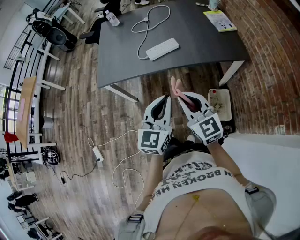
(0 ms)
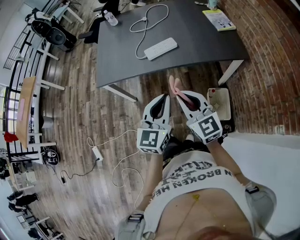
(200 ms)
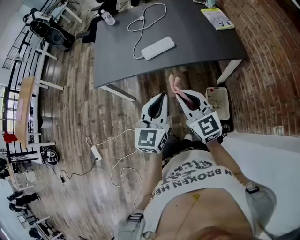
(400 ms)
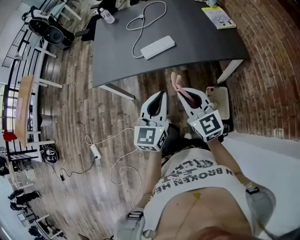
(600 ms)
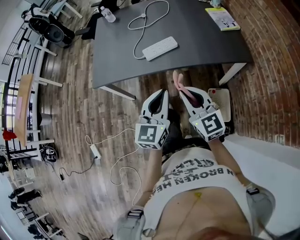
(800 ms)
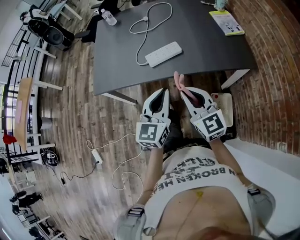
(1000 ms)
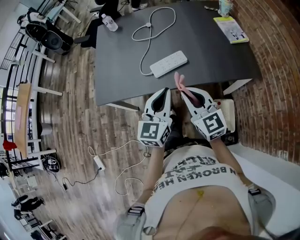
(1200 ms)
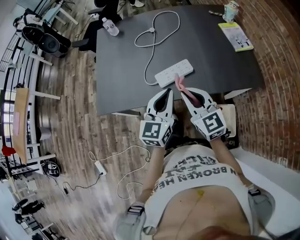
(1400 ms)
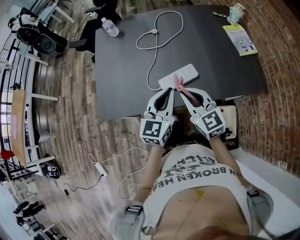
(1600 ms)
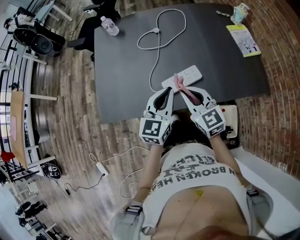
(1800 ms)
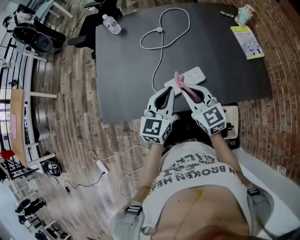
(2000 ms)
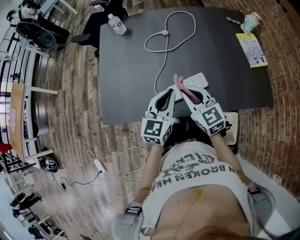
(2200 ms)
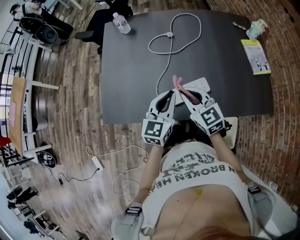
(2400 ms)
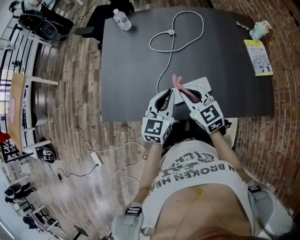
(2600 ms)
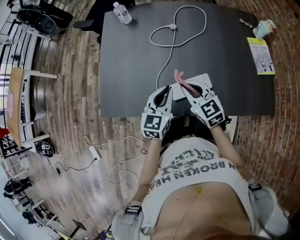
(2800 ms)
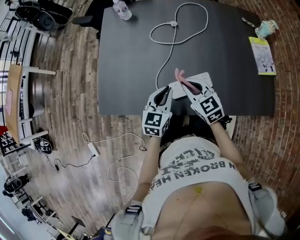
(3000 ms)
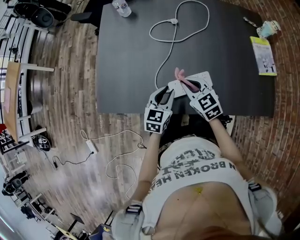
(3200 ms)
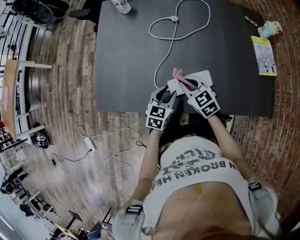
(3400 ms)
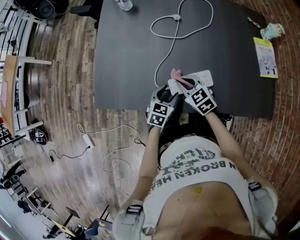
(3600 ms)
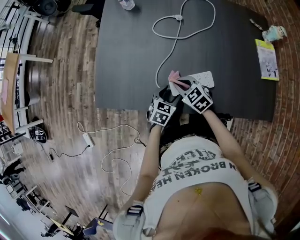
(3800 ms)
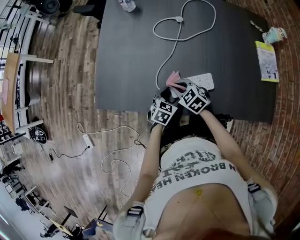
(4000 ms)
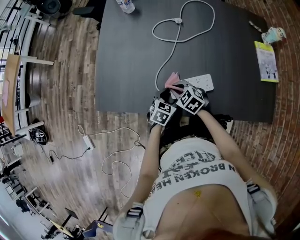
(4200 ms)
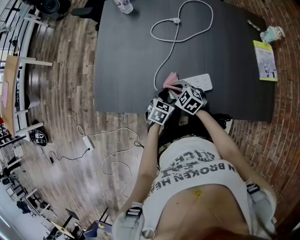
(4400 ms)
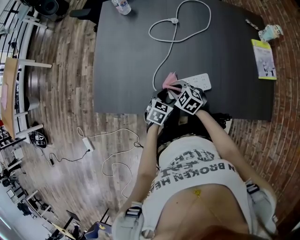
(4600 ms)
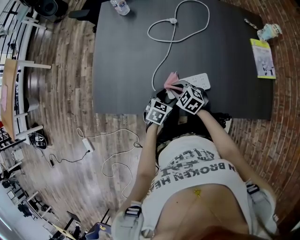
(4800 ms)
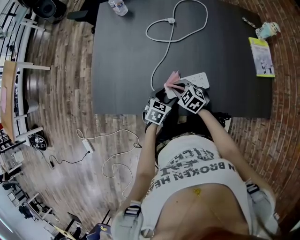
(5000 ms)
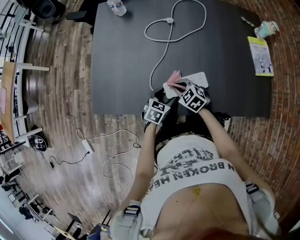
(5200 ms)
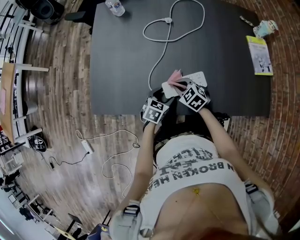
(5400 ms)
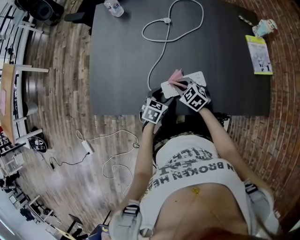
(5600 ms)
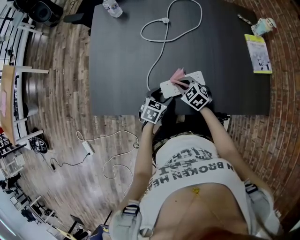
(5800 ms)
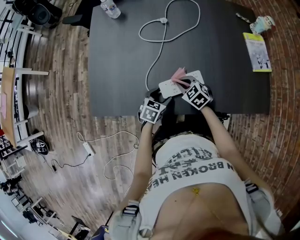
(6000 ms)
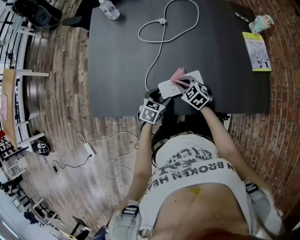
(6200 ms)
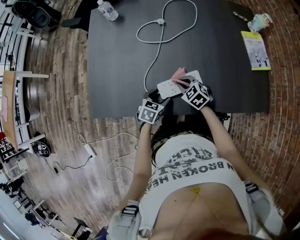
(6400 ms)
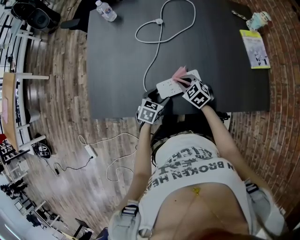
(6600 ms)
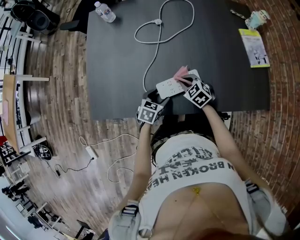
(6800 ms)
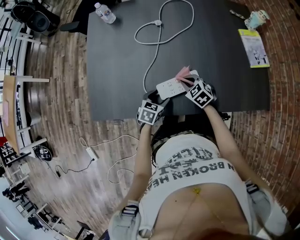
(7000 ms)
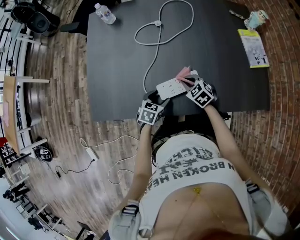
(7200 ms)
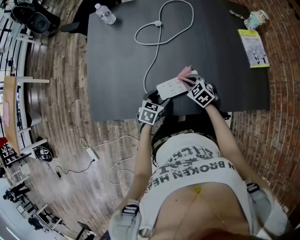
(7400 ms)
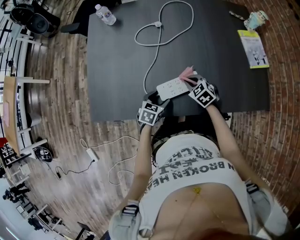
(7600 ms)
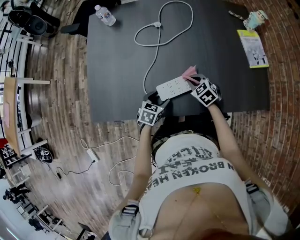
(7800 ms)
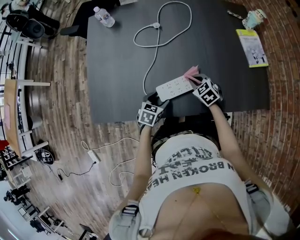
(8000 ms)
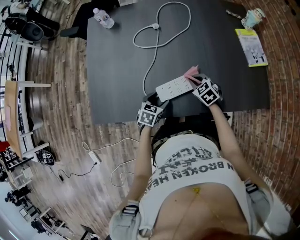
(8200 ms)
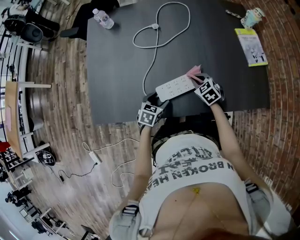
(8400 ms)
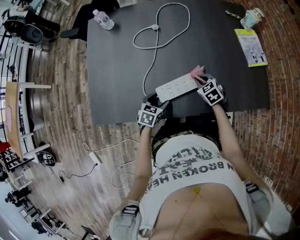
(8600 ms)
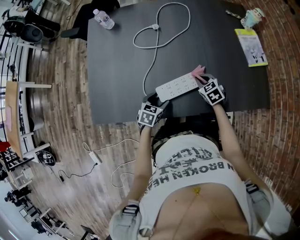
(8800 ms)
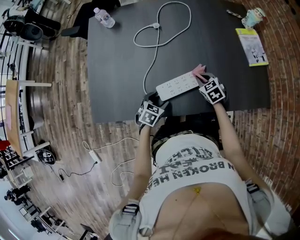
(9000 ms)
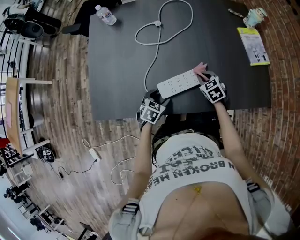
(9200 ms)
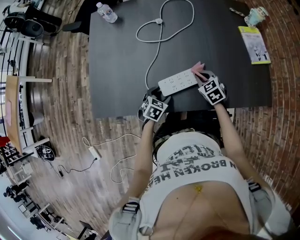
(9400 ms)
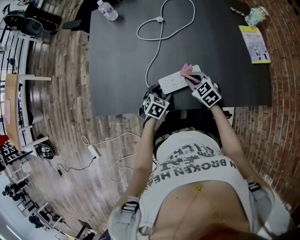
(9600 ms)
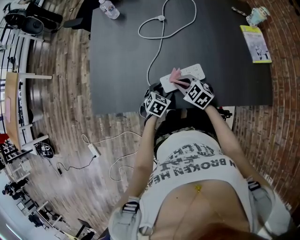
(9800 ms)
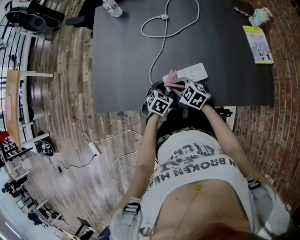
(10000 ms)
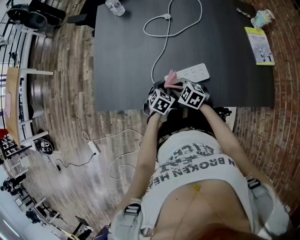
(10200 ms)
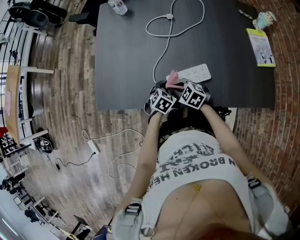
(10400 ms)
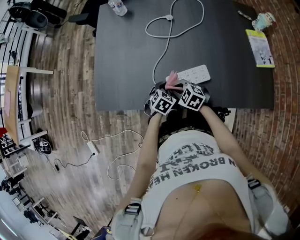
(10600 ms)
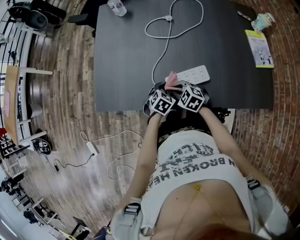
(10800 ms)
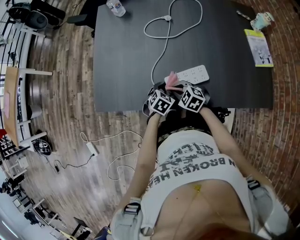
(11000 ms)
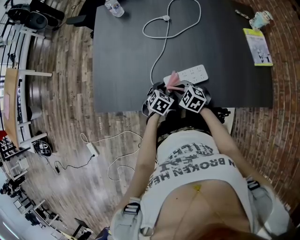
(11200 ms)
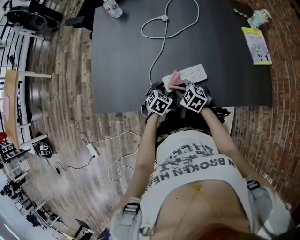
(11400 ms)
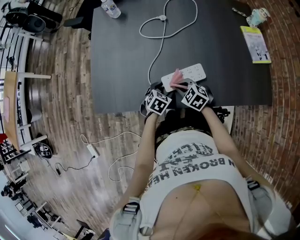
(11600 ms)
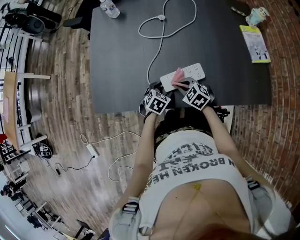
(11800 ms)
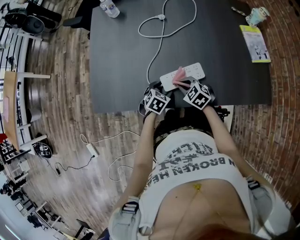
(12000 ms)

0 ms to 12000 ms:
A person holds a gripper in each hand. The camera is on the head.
0 ms to 1600 ms: The grippers both shift forward by approximately 35 cm.
1600 ms to 3000 ms: The right gripper moves forward and downward, approximately 15 cm; the left gripper is displaced downward and forward by approximately 15 cm.
3000 ms to 4400 ms: Both grippers travel together downward, approximately 15 cm. The left gripper turns by approximately 30 degrees, and opens, while the right gripper turns by approximately 30 degrees.
4400 ms to 6000 ms: The right gripper travels to the right by roughly 10 cm.
6000 ms to 7600 ms: The right gripper is displaced to the right by approximately 5 cm.
7600 ms to 9000 ms: The right gripper heads to the right, covering approximately 5 cm.
9000 ms to 10400 ms: The right gripper goes about 20 cm to the left and backward, and turns by about 30 degrees.
10400 ms to 12000 ms: The right gripper heads to the right, covering roughly 5 cm.

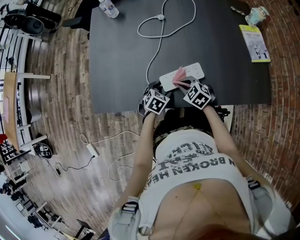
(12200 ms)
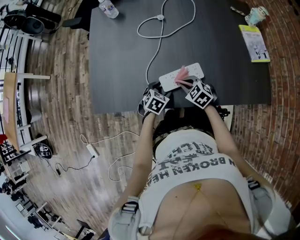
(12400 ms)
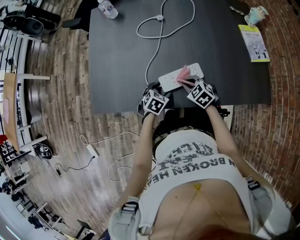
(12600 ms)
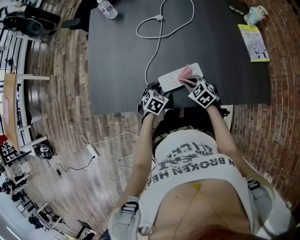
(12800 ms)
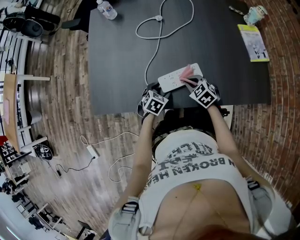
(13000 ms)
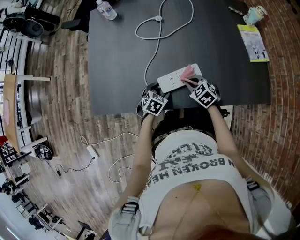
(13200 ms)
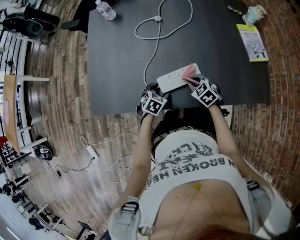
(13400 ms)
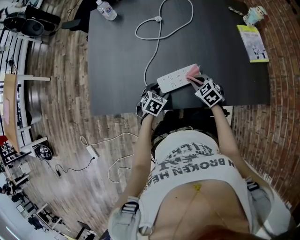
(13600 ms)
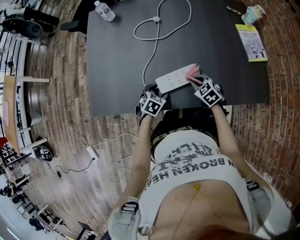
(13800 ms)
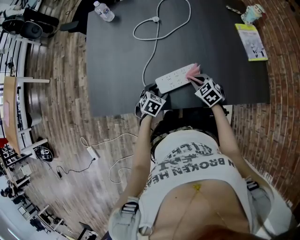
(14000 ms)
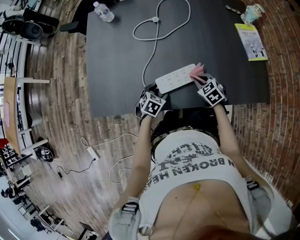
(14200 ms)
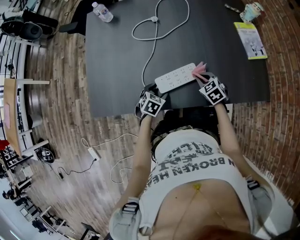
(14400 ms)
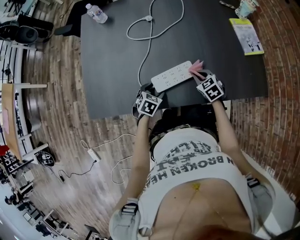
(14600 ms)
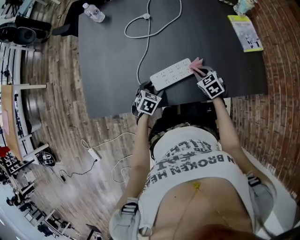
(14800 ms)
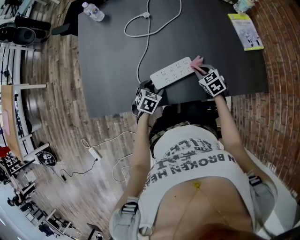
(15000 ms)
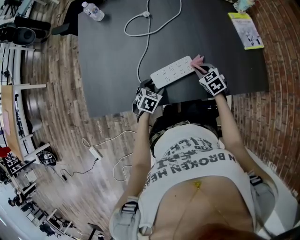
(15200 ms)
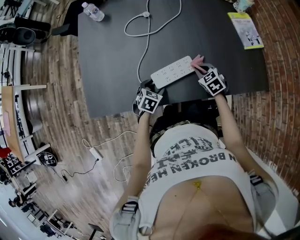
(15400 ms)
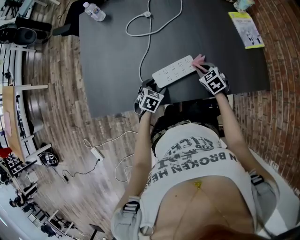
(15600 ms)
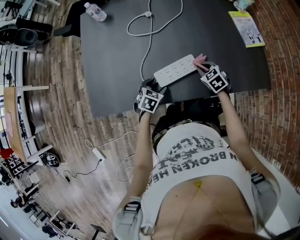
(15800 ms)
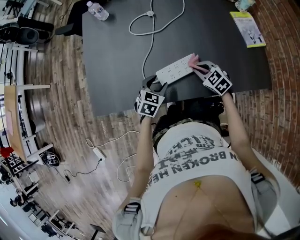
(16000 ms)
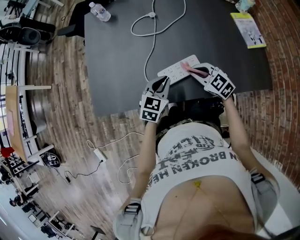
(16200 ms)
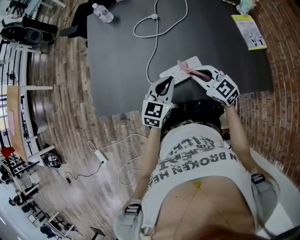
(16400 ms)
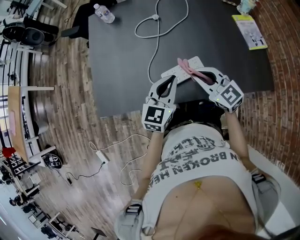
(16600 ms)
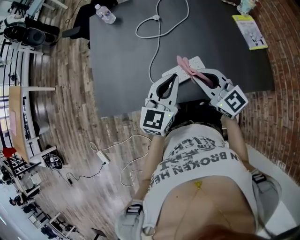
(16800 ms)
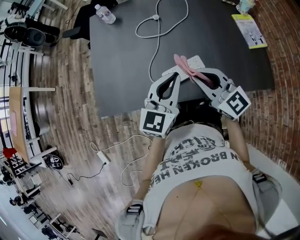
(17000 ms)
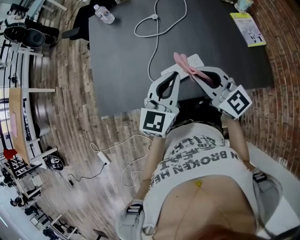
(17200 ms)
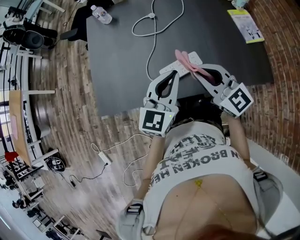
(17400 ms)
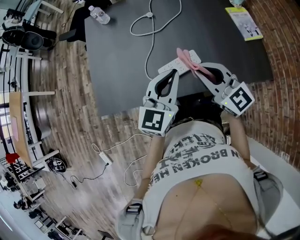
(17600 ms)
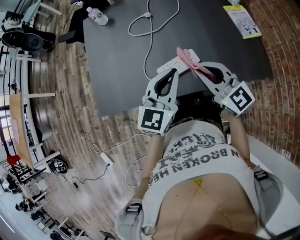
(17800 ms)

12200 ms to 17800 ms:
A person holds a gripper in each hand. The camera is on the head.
12200 ms to 13600 ms: The right gripper is displaced to the right by some 10 cm.
13600 ms to 15000 ms: The right gripper goes roughly 5 cm to the right.
15000 ms to 16400 ms: The left gripper goes approximately 20 cm upward, tilts its fingers about 40 degrees upward, and closes, while the right gripper heads upward and to the left, covering approximately 20 cm, and changes its angle by roughly 30 degrees.
16400 ms to 17800 ms: The grippers both shift upward by about 15 cm. The right gripper turns by some 20 degrees.

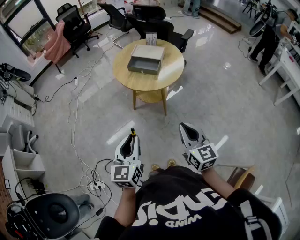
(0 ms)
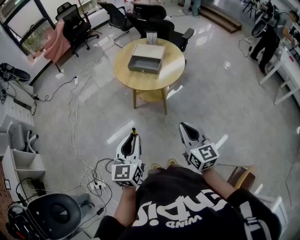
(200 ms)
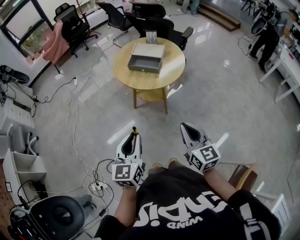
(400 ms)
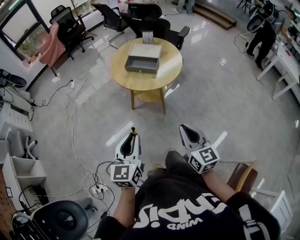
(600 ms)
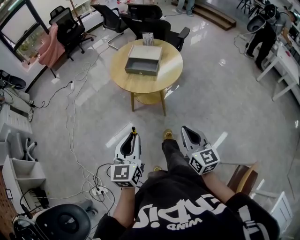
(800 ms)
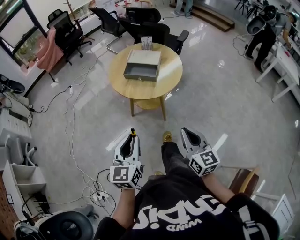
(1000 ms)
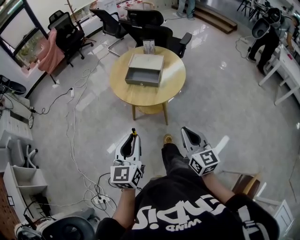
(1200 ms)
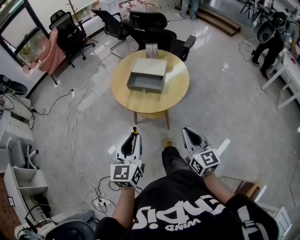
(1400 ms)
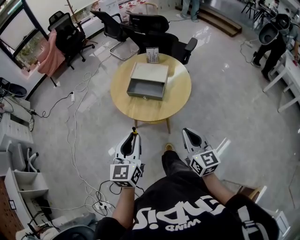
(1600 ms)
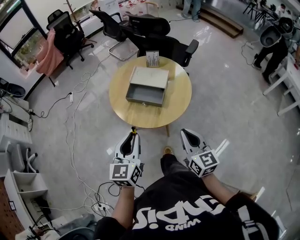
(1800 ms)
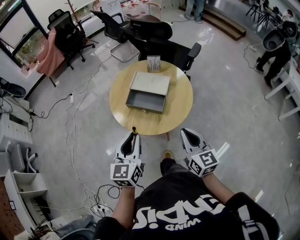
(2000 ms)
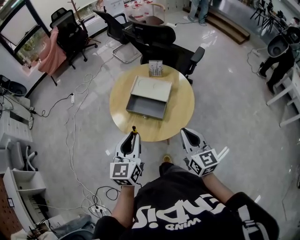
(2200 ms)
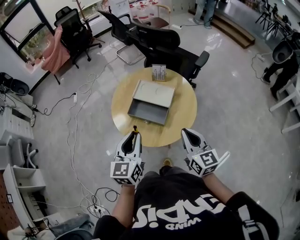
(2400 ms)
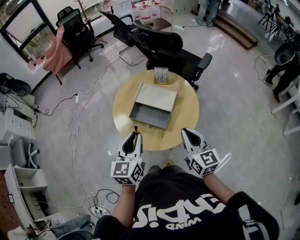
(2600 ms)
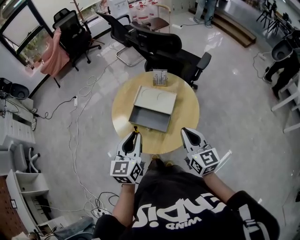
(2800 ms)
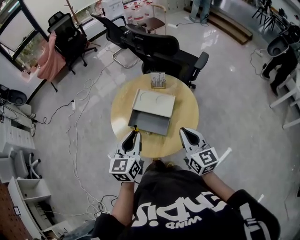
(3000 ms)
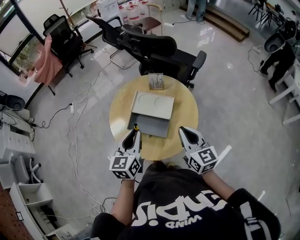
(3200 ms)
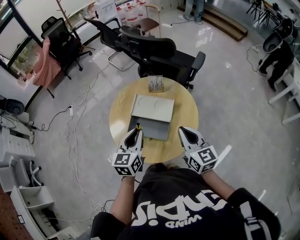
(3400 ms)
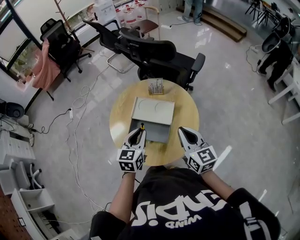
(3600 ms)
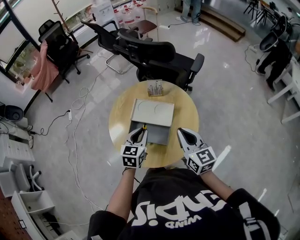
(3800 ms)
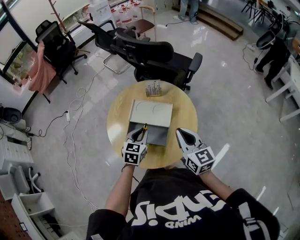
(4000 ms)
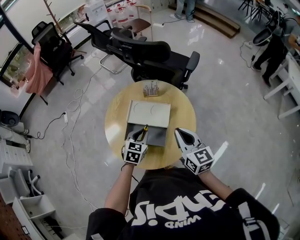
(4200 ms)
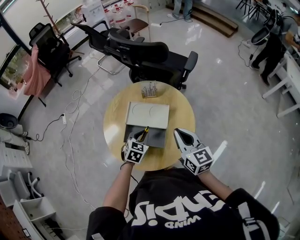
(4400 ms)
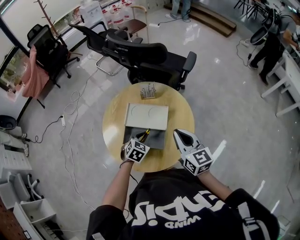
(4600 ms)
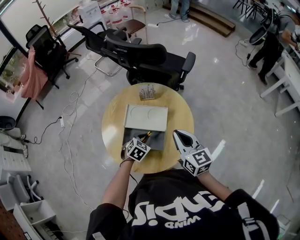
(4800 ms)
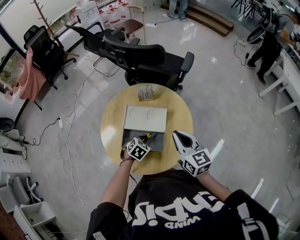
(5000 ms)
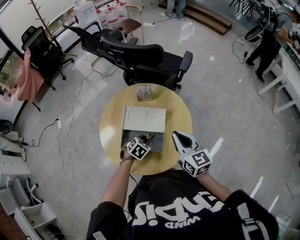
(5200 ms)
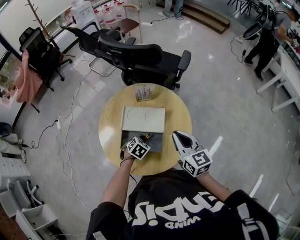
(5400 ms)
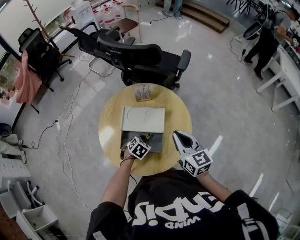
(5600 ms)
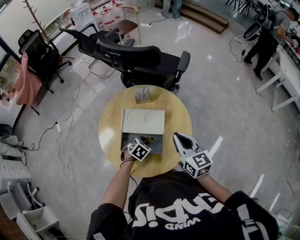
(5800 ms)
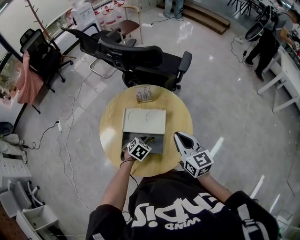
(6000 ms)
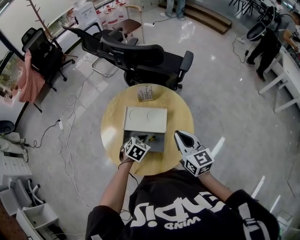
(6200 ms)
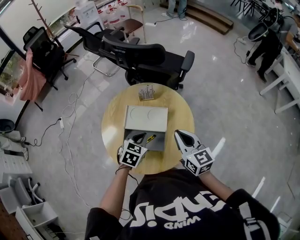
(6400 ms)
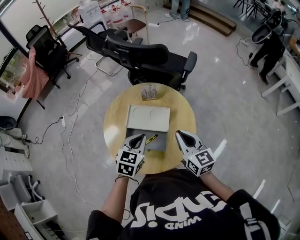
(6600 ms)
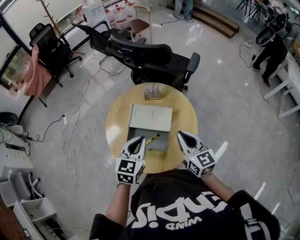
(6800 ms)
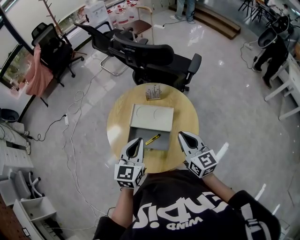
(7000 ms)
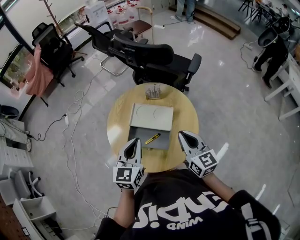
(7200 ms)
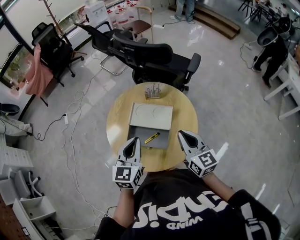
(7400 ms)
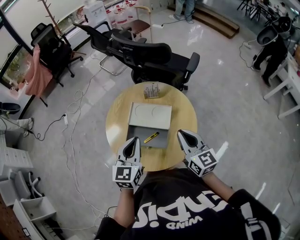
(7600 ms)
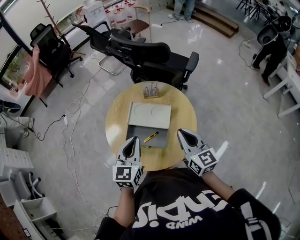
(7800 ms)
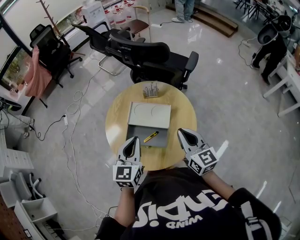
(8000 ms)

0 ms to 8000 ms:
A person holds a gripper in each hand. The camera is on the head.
0 ms to 1600 ms: Both grippers travel together forward, approximately 20 cm.
1600 ms to 3200 ms: The two grippers go roughly 30 cm forward.
3200 ms to 4800 ms: The left gripper goes some 25 cm downward and forward, and tips its fingers downward by roughly 40 degrees. Meanwhile the right gripper is displaced forward by about 5 cm.
4800 ms to 6400 ms: The left gripper goes about 10 cm upward.
6400 ms to 8000 ms: The left gripper travels upward and backward by roughly 15 cm, and rotates roughly 40 degrees.
